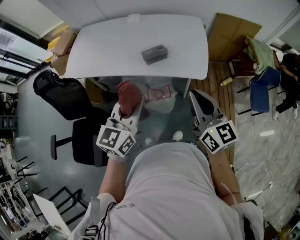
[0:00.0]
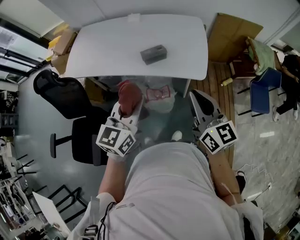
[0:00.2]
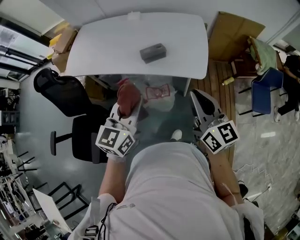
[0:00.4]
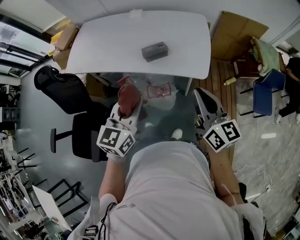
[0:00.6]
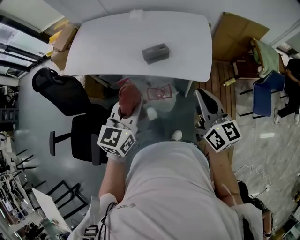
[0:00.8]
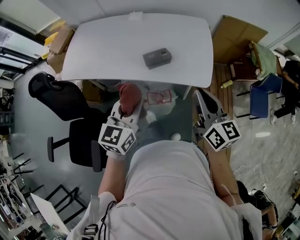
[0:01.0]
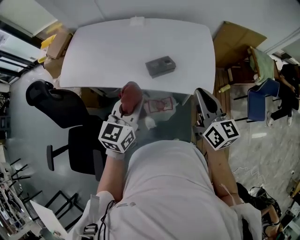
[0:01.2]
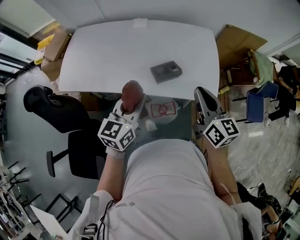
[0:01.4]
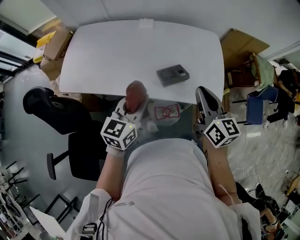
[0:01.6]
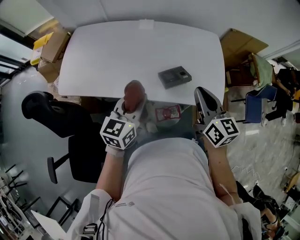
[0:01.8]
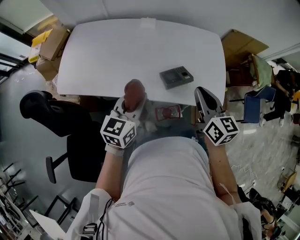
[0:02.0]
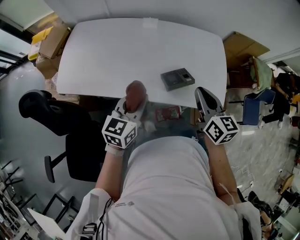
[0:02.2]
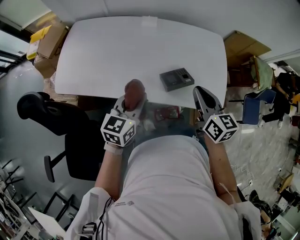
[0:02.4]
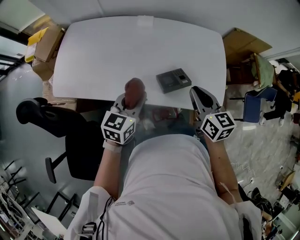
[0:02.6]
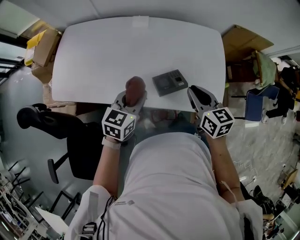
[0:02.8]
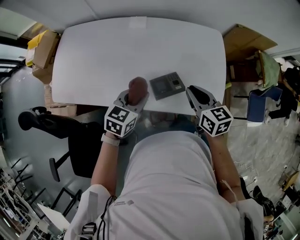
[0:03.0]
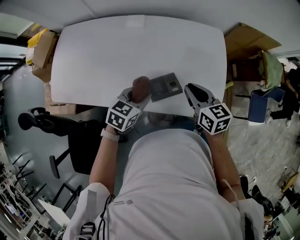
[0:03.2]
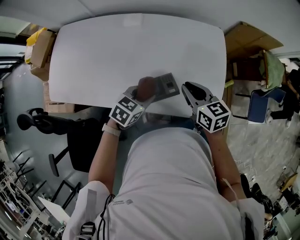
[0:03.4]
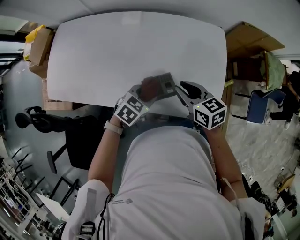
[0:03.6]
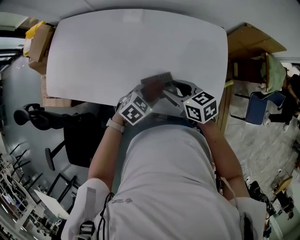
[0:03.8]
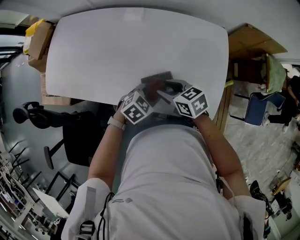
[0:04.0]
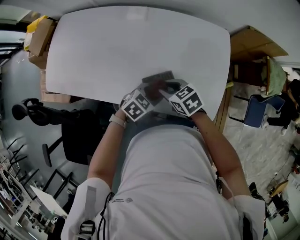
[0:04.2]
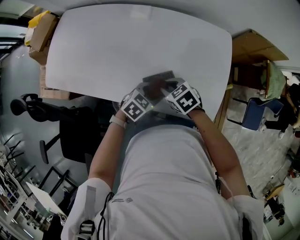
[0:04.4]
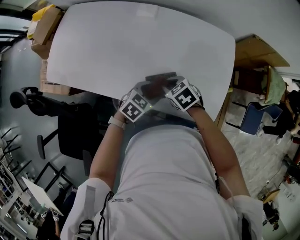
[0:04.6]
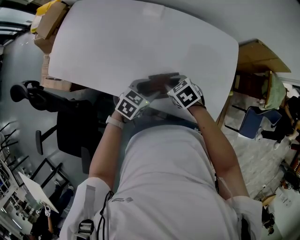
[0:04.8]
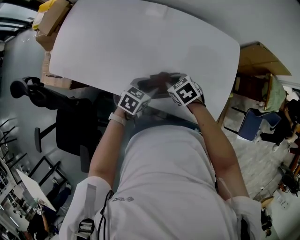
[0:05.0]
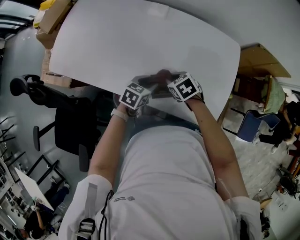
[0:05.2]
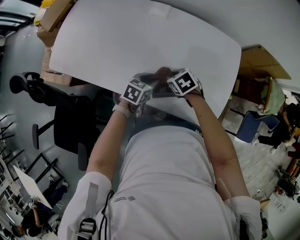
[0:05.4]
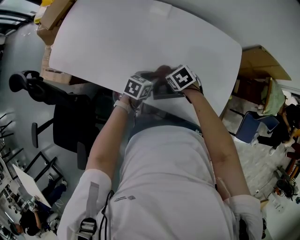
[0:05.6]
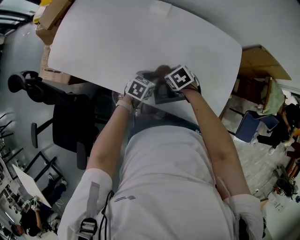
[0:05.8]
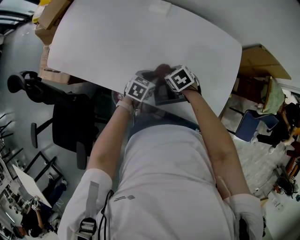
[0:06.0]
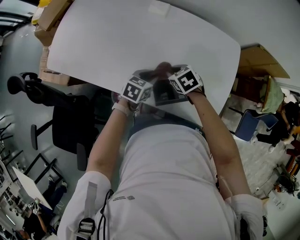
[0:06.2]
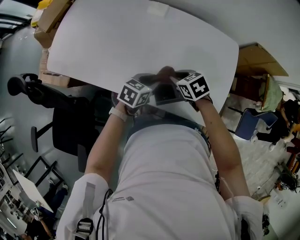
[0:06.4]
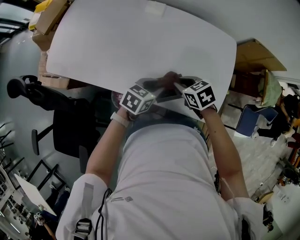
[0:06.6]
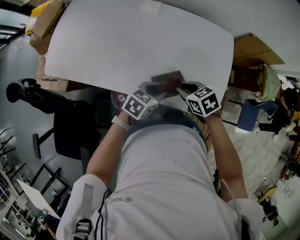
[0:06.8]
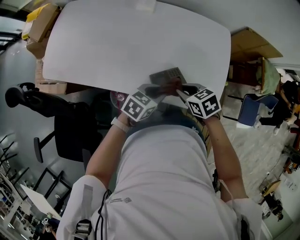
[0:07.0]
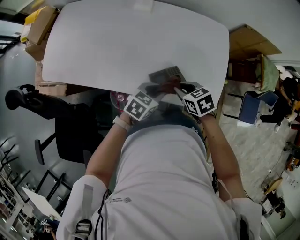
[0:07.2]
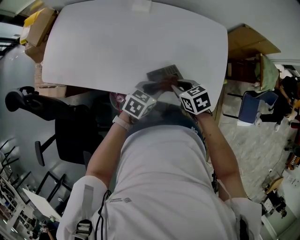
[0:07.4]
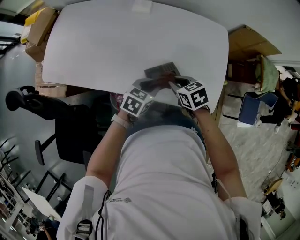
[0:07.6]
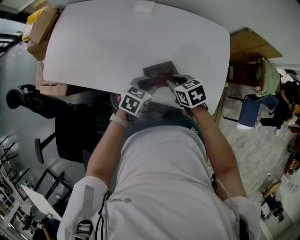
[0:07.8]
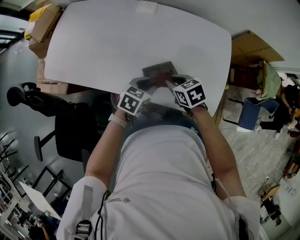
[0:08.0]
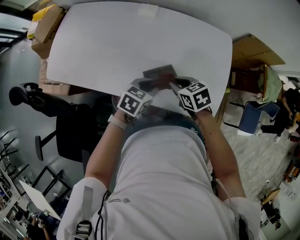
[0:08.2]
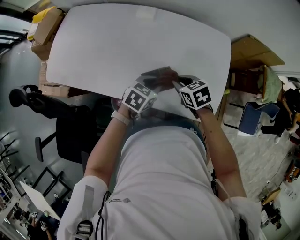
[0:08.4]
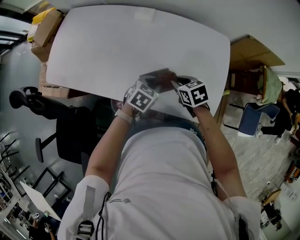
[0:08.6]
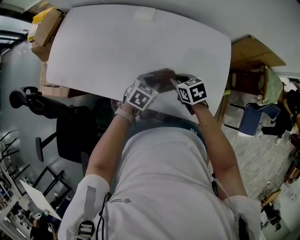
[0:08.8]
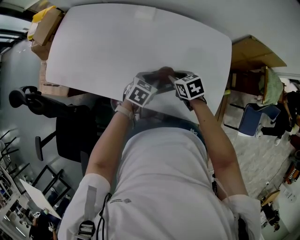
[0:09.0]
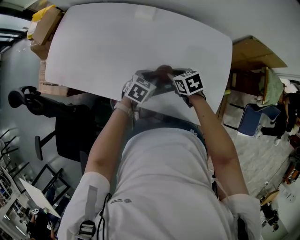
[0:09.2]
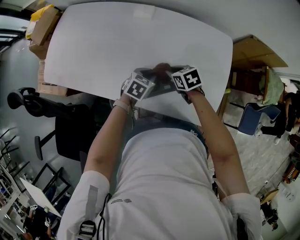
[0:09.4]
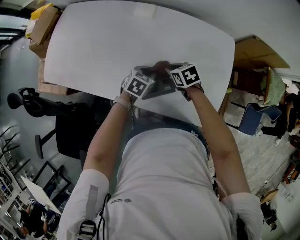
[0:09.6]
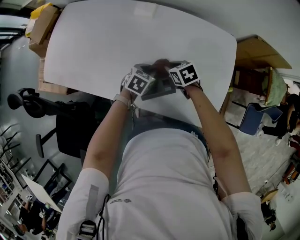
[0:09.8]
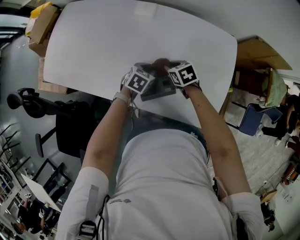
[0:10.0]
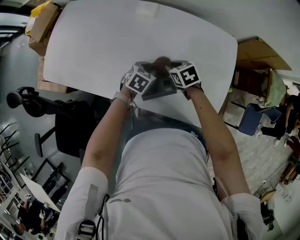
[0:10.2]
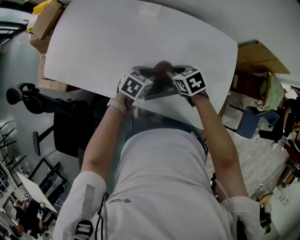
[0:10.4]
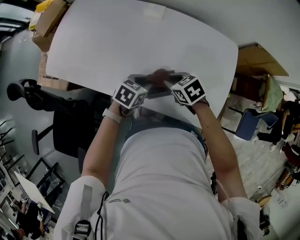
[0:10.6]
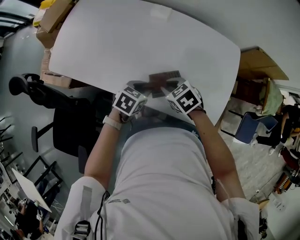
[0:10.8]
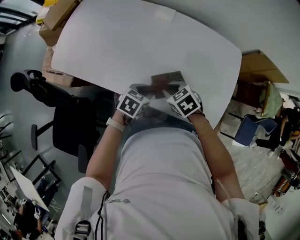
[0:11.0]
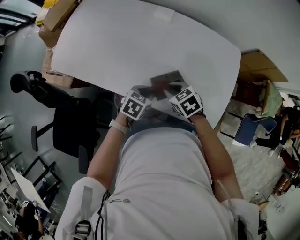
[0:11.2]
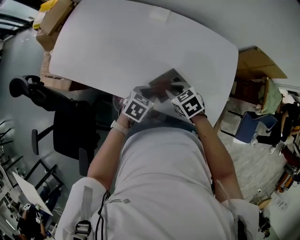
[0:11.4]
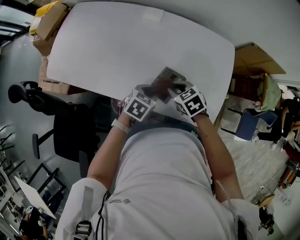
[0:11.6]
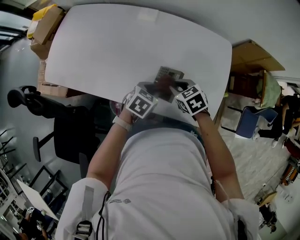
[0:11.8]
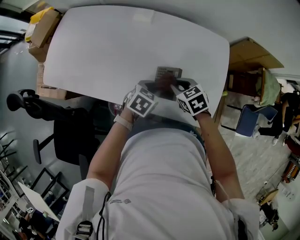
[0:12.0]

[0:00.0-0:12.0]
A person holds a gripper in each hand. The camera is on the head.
0:00.0 to 0:01.6: The right gripper moves forward and to the left, roughly 20 cm. Meanwhile the left gripper is displaced forward, to the left and downward by roughly 25 cm.
0:01.6 to 0:03.0: Both grippers travel together forward and downward, about 15 cm. The right gripper rotates some 20 degrees; the left gripper turns by approximately 20 degrees.
0:03.0 to 0:04.4: The grippers both shift downward by approximately 10 cm. The right gripper swivels some 40 degrees, while the left gripper opens up.
0:04.4 to 0:06.0: The left gripper moves approximately 10 cm, turns by roughly 30 degrees, and closes; the right gripper heads downward, covering about 5 cm.
0:06.0 to 0:07.6: The grippers both shift upward and backward by roughly 10 cm. The right gripper changes its angle by about 20 degrees.
0:07.6 to 0:09.0: Both grippers travel together forward, about 10 cm.

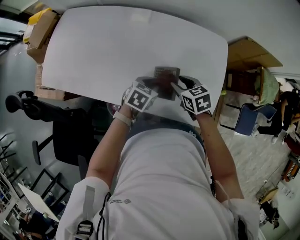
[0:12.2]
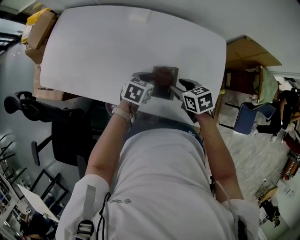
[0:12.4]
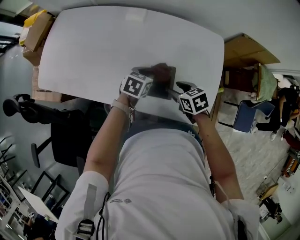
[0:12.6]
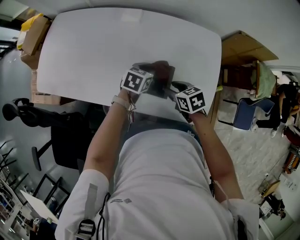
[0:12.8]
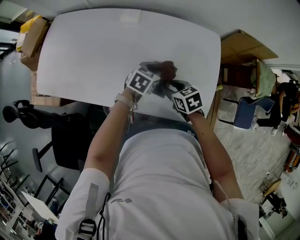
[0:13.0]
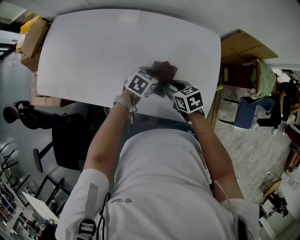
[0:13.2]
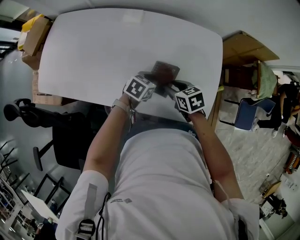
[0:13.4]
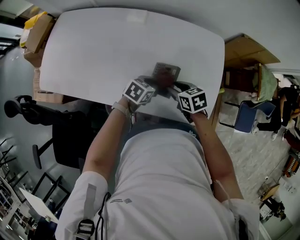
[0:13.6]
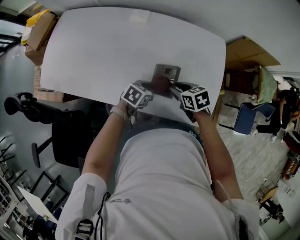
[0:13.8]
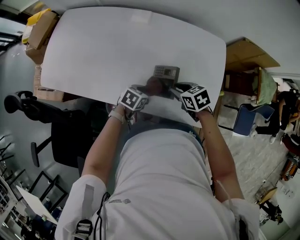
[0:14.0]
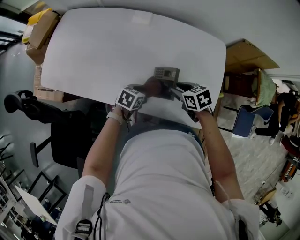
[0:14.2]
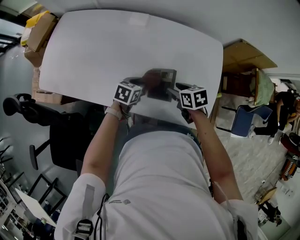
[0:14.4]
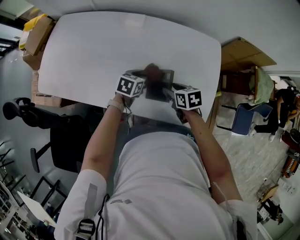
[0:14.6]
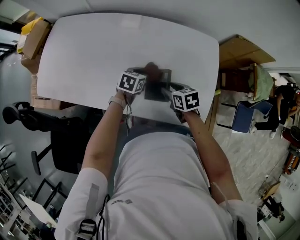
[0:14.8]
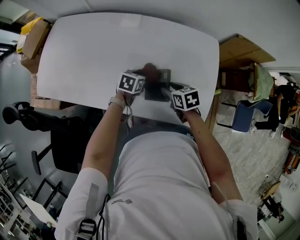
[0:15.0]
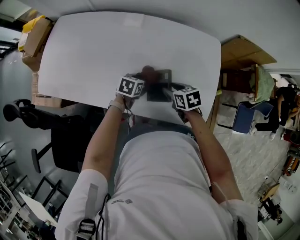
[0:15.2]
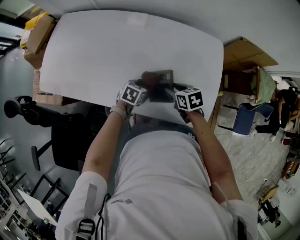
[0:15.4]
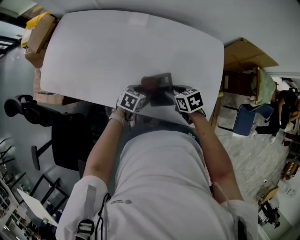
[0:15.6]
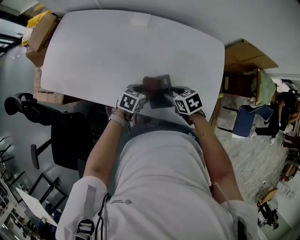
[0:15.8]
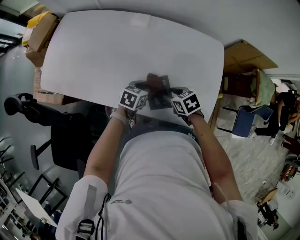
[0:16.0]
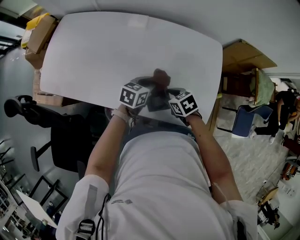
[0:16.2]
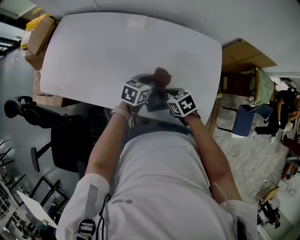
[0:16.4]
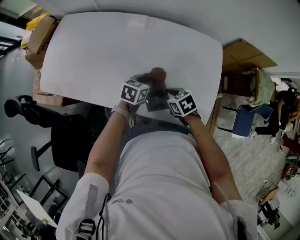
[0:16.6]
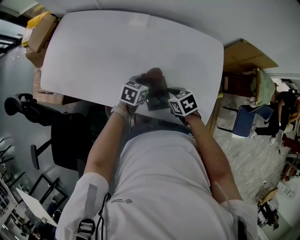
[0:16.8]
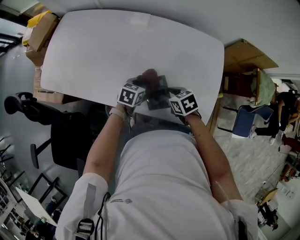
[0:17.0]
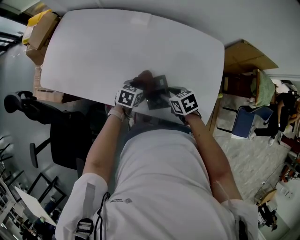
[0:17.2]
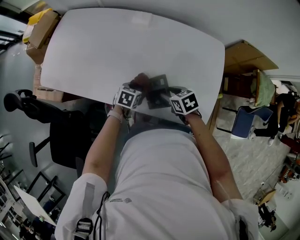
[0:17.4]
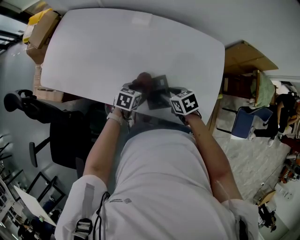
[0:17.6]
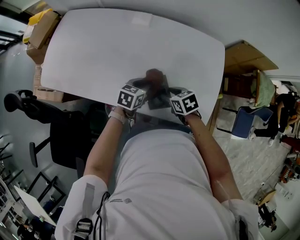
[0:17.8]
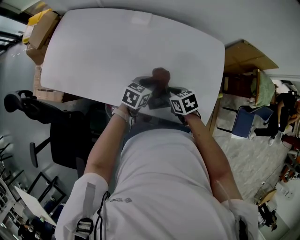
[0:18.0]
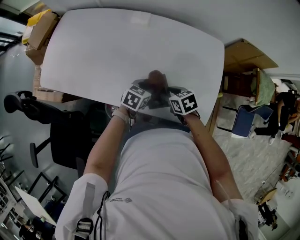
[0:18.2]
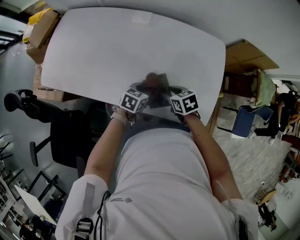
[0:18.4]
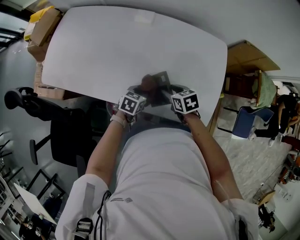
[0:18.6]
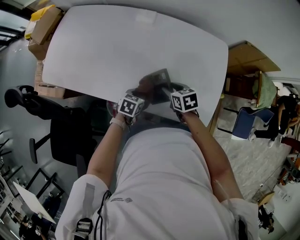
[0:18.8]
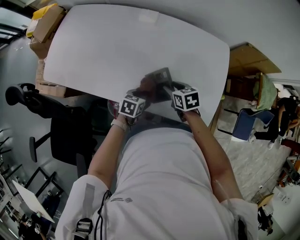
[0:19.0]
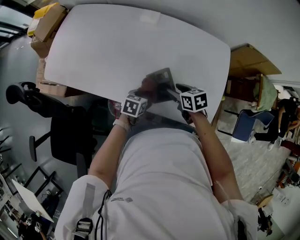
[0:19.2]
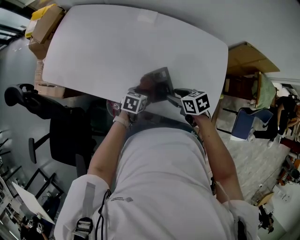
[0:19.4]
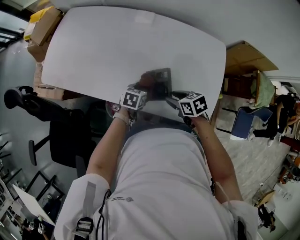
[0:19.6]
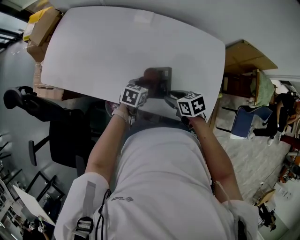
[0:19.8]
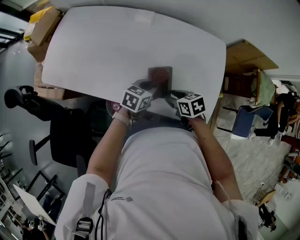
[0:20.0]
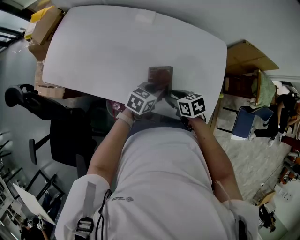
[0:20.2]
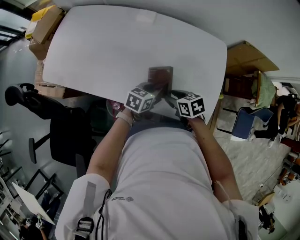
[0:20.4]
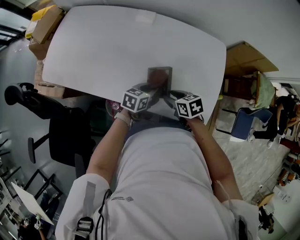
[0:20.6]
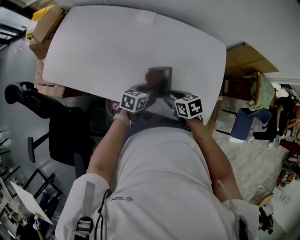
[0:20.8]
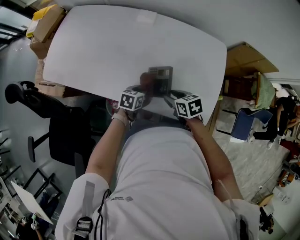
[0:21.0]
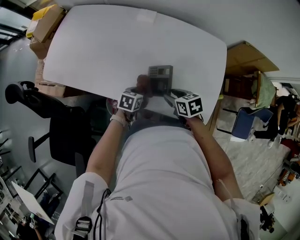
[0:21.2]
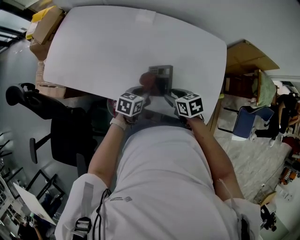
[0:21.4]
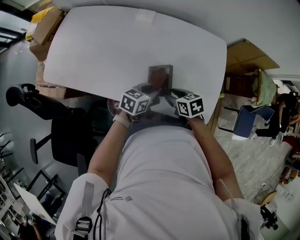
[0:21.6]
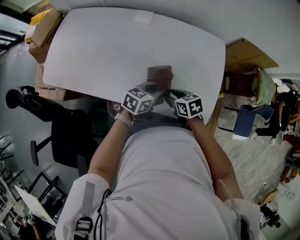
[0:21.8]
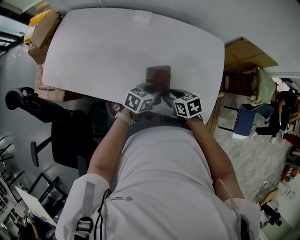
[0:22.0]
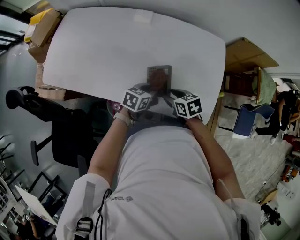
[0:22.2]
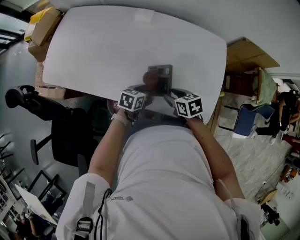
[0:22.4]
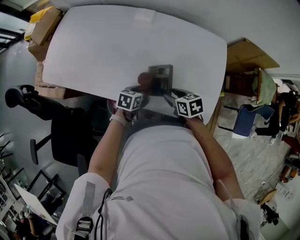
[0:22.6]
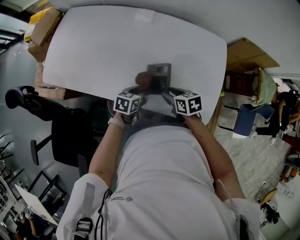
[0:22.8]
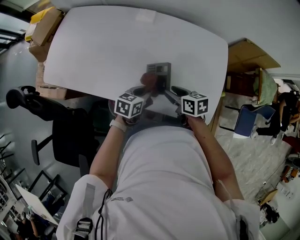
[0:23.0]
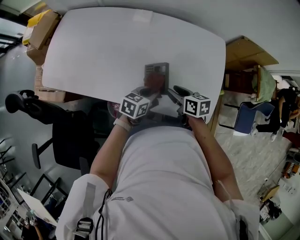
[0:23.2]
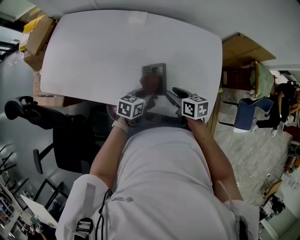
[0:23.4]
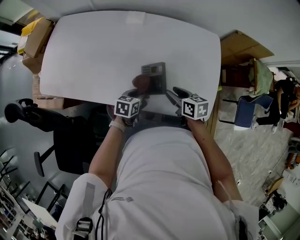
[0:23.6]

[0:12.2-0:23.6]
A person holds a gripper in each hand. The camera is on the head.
0:13.6 to 0:15.0: The left gripper moves roughly 10 cm.
0:15.0 to 0:16.4: The left gripper heads upward, covering some 5 cm. The right gripper shifts by roughly 5 cm.
0:16.4 to 0:17.8: The left gripper travels downward and back again, roughly 10 cm each way.
0:17.8 to 0:19.4: The left gripper moves downward, approximately 5 cm.
0:20.8 to 0:22.2: The left gripper moves up and down over roughly 10 cm, changing direction 2 times.
0:22.2 to 0:23.6: The left gripper moves up and down over about 10 cm, changing direction 2 times. Meanwhile the right gripper rotates approximately 20 degrees.
